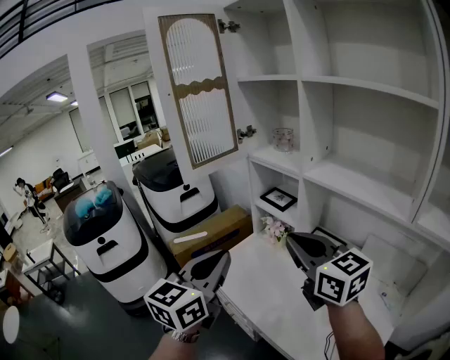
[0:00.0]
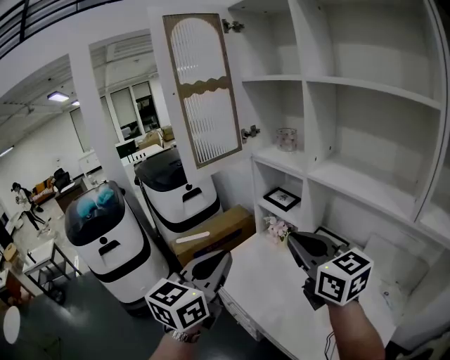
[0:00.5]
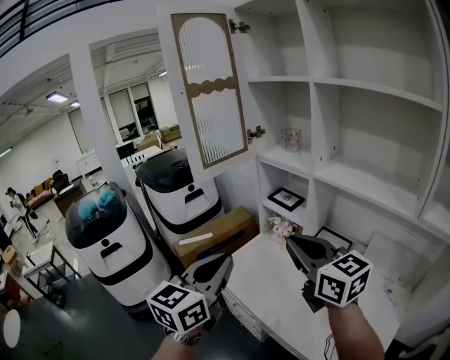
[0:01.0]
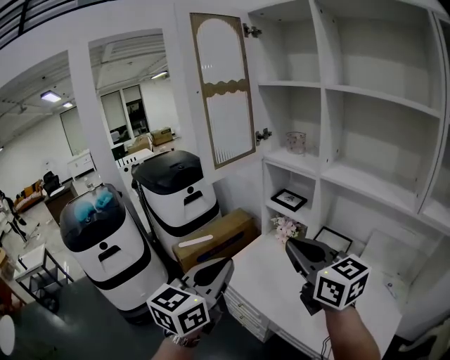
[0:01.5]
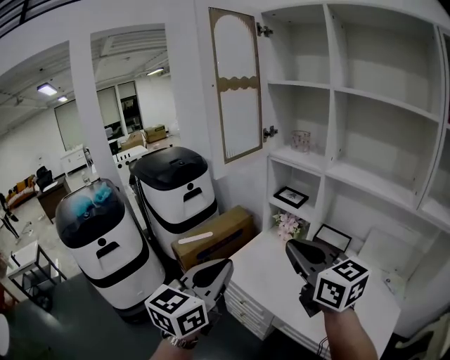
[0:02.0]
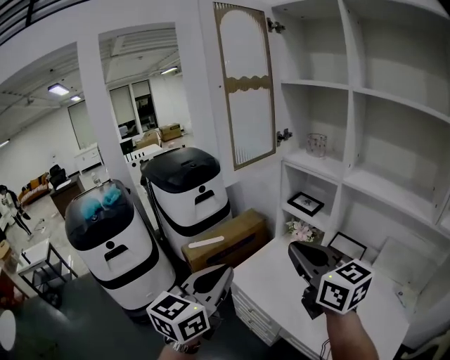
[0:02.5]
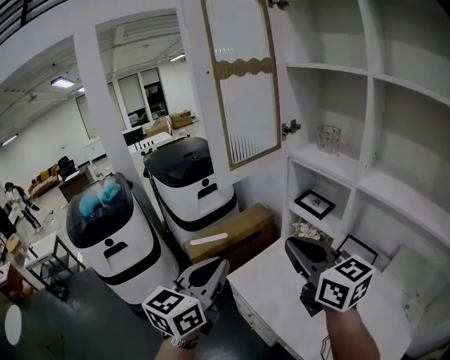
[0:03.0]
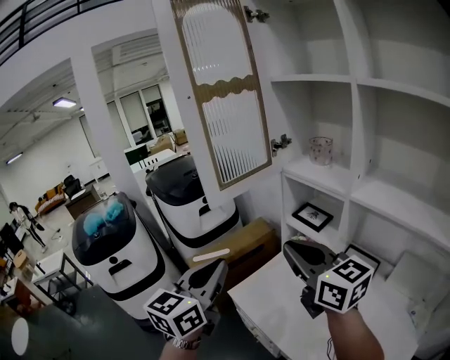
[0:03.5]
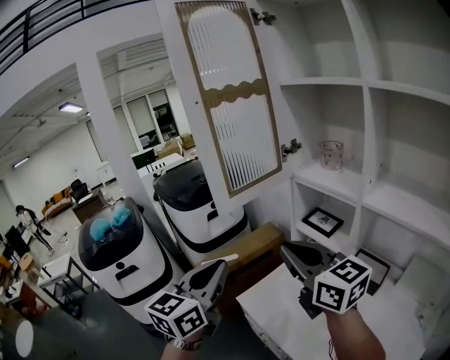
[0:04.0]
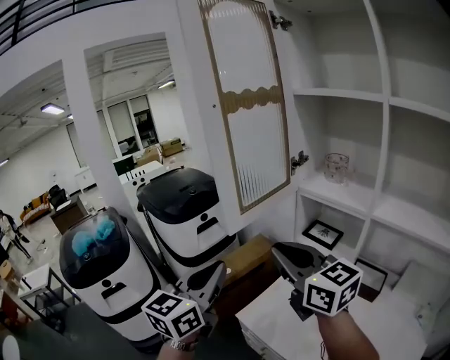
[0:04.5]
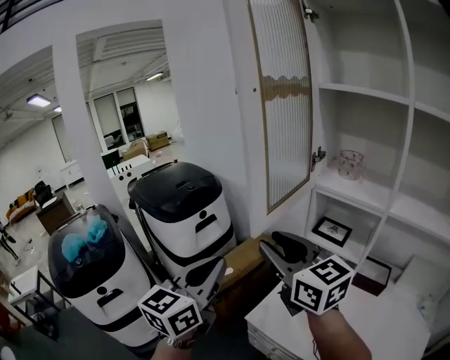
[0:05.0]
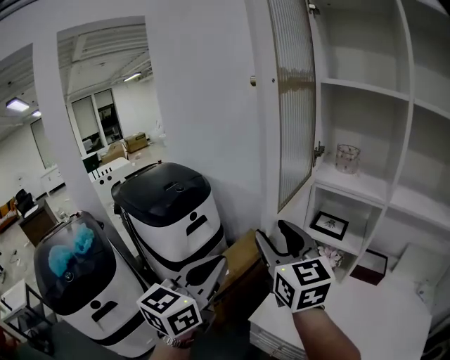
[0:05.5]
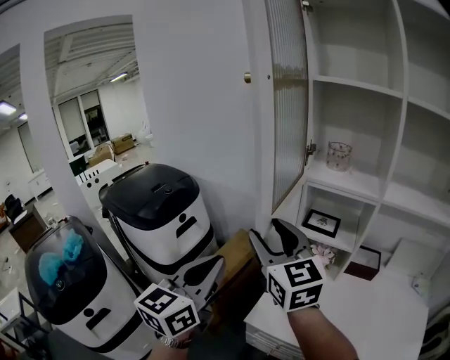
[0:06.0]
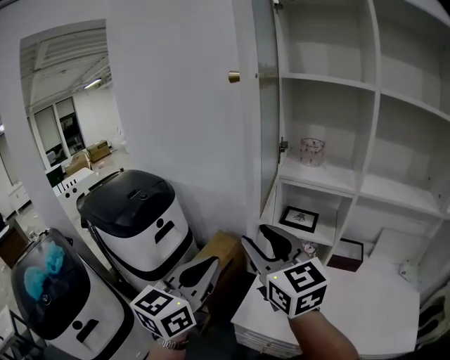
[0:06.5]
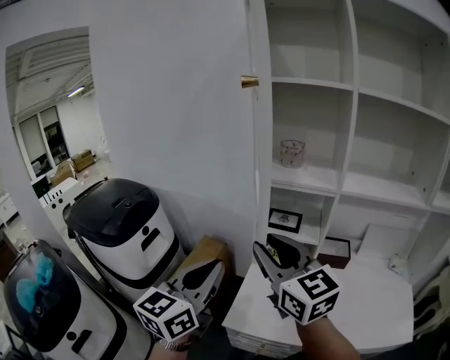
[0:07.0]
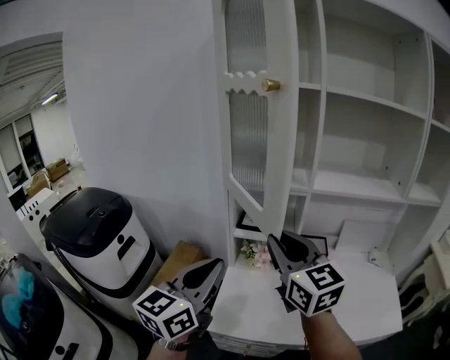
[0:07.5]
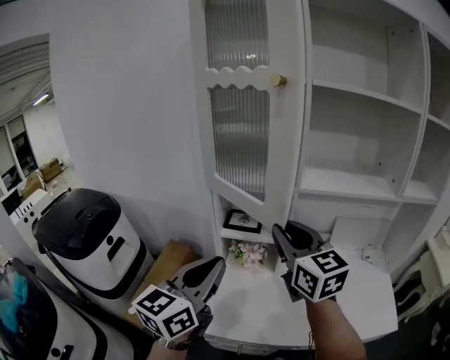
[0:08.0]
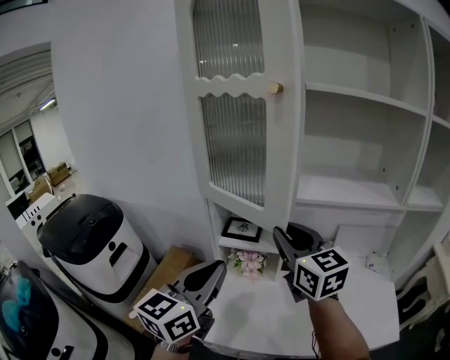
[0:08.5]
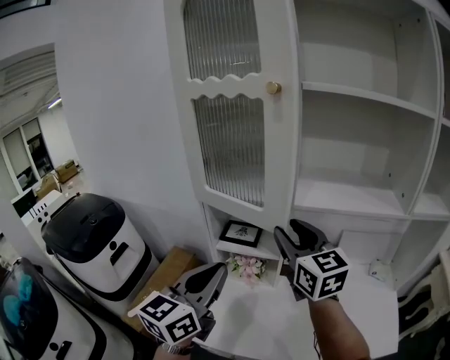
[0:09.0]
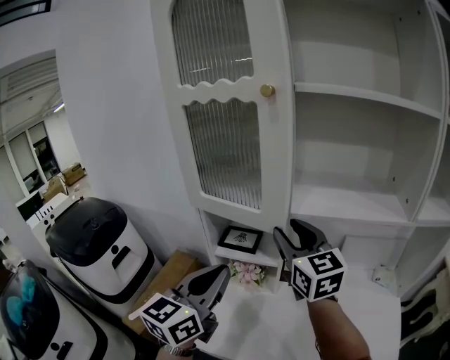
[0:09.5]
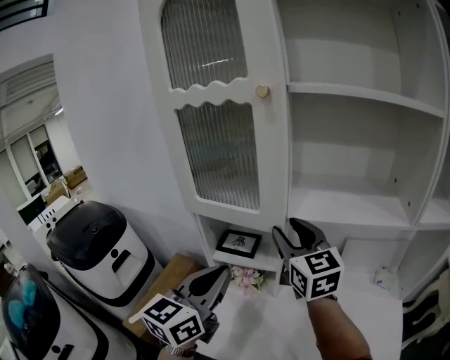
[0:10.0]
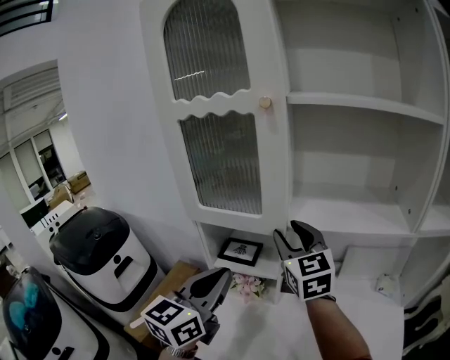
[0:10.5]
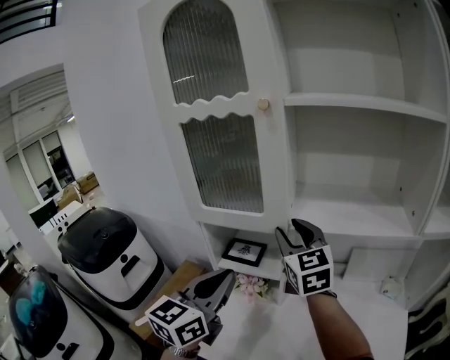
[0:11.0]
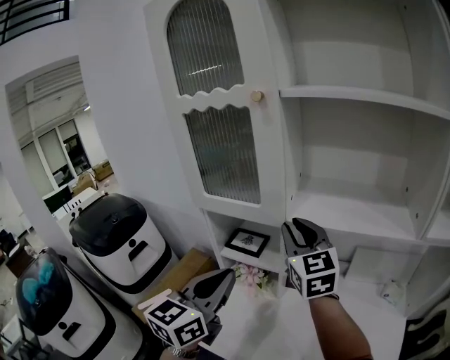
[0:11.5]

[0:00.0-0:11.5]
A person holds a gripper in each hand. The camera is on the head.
0:00.0 to 0:02.0: Both grippers travel together to the left, about 15 cm.
0:02.0 to 0:04.0: Both grippers travel together forward, roughly 20 cm.
0:04.0 to 0:06.0: The left gripper ends up about 20 cm from where it was, and swivels about 20 degrees, while the right gripper changes place by approximately 20 cm, turns by roughly 40 degrees, and opens up.
0:06.0 to 0:07.5: The grippers both shift to the right by roughly 15 cm. The left gripper turns by roughly 20 degrees. The right gripper closes up.
0:07.5 to 0:09.5: The left gripper travels to the right and forward by roughly 15 cm, while the right gripper is displaced forward and to the right by approximately 20 cm, and opens its fingers.
0:09.5 to 0:11.5: The grippers make only small movements.

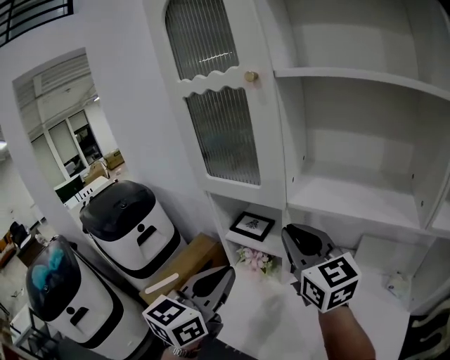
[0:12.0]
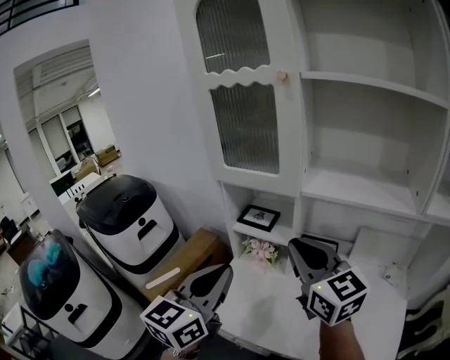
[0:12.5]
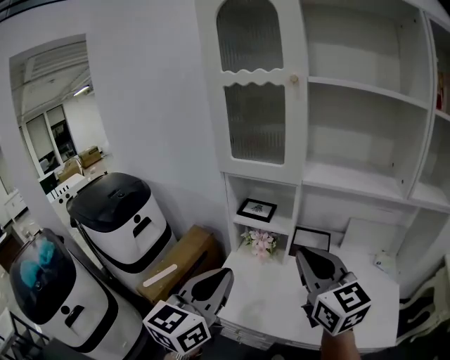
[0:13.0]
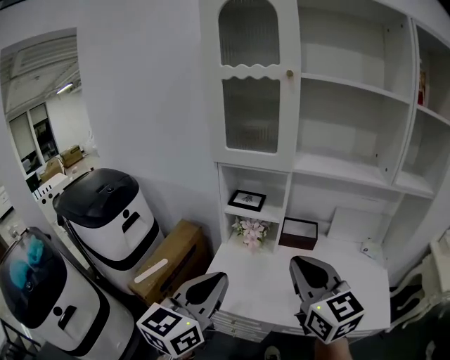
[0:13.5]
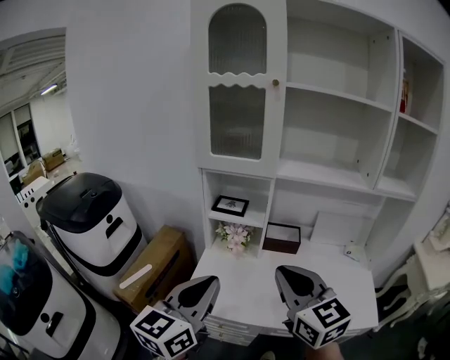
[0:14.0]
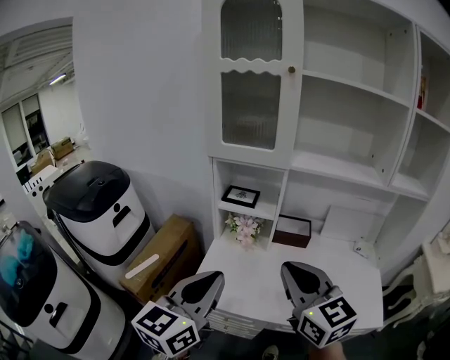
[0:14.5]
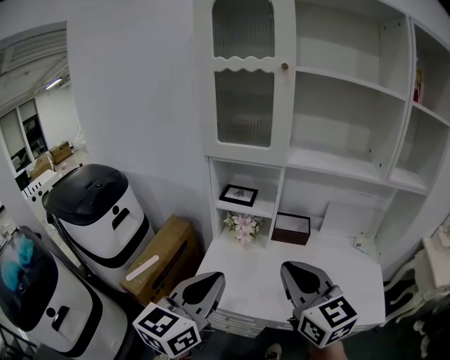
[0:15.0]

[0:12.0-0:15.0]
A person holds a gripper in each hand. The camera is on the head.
0:12.0 to 0:13.5: The left gripper travels backward and to the left by about 20 cm. The right gripper is displaced backward by about 25 cm.
0:13.5 to 0:15.0: The grippers make only small movements.

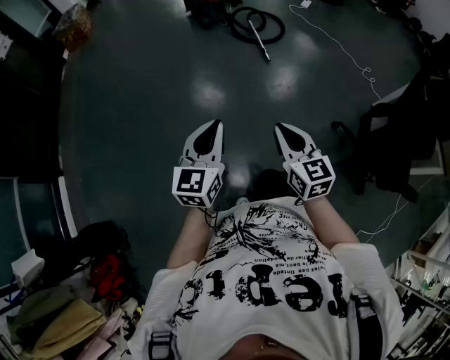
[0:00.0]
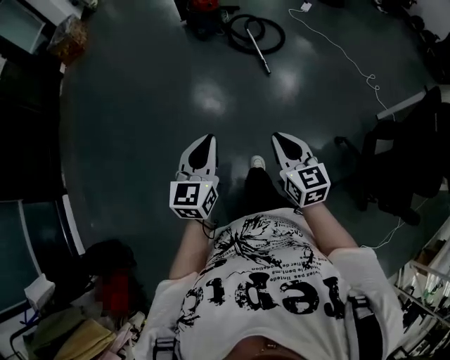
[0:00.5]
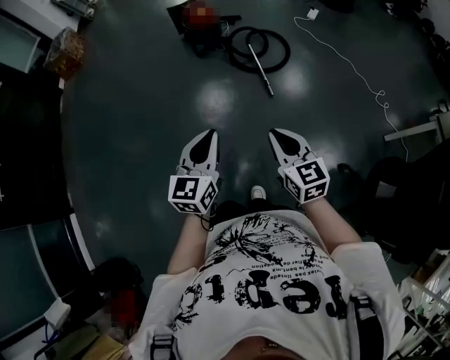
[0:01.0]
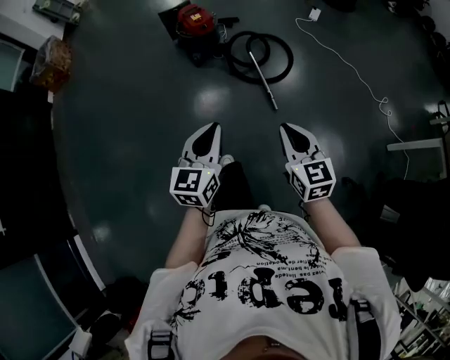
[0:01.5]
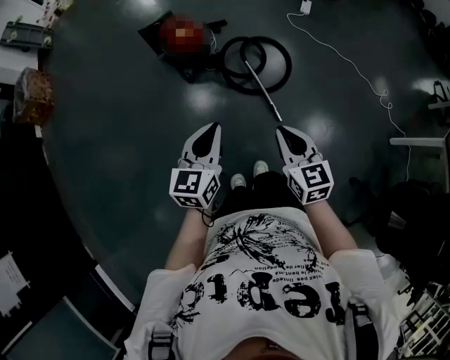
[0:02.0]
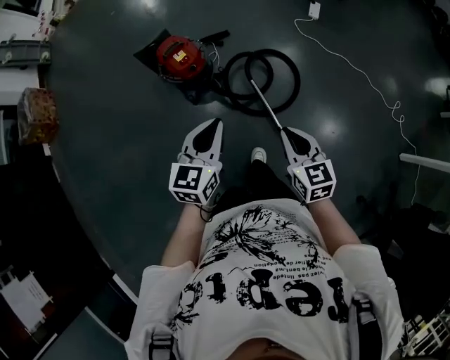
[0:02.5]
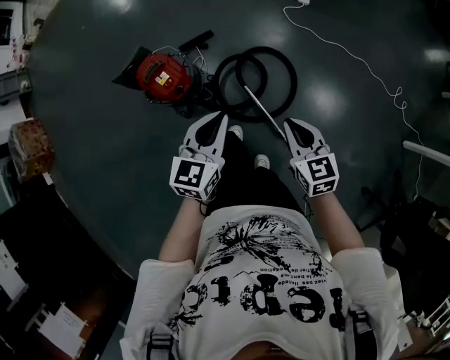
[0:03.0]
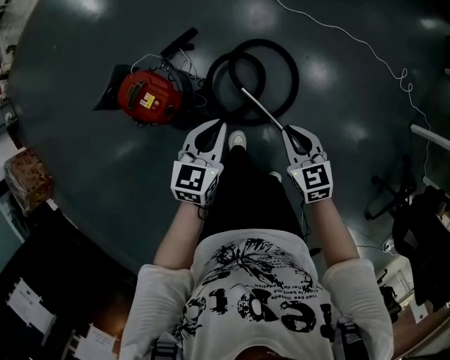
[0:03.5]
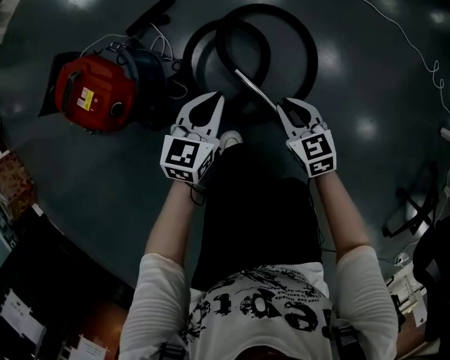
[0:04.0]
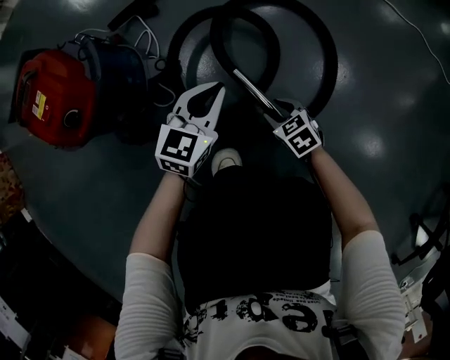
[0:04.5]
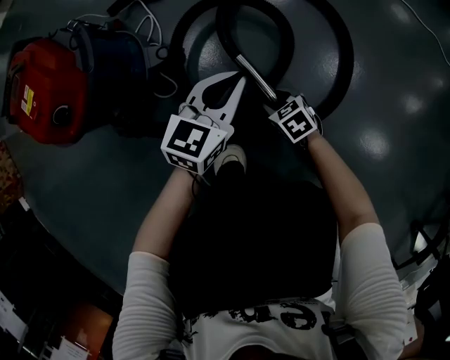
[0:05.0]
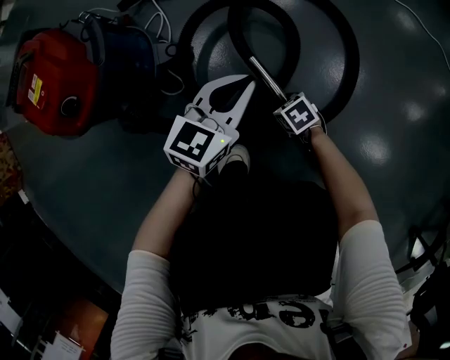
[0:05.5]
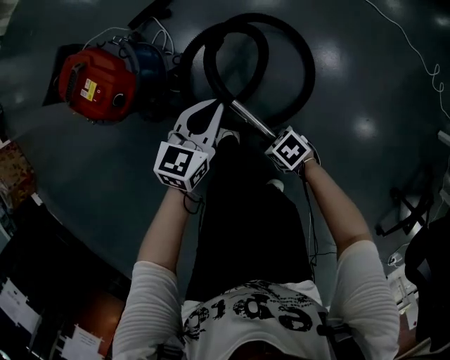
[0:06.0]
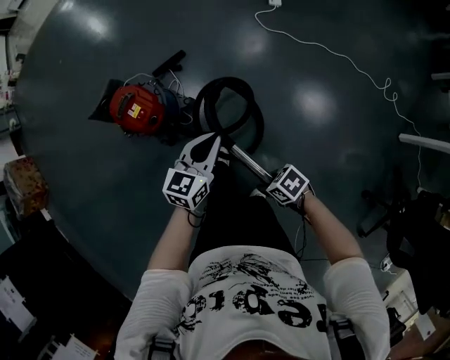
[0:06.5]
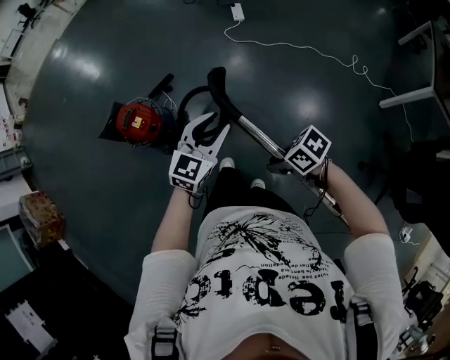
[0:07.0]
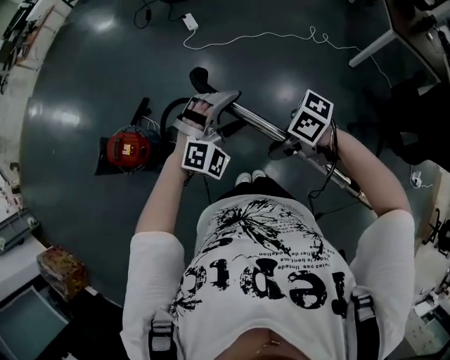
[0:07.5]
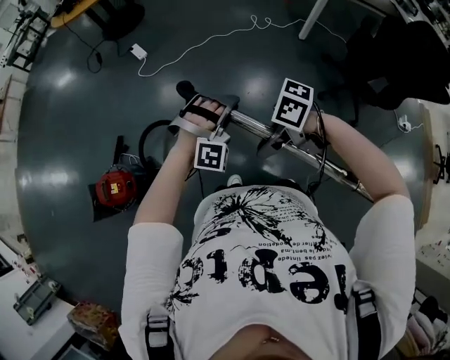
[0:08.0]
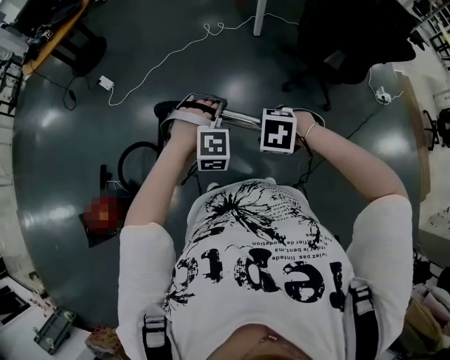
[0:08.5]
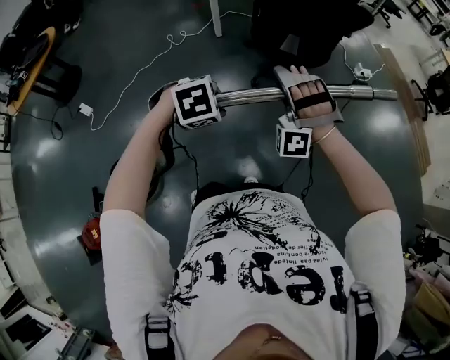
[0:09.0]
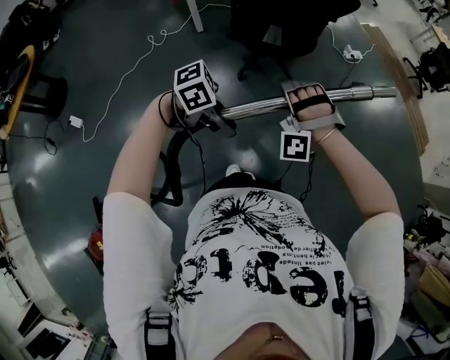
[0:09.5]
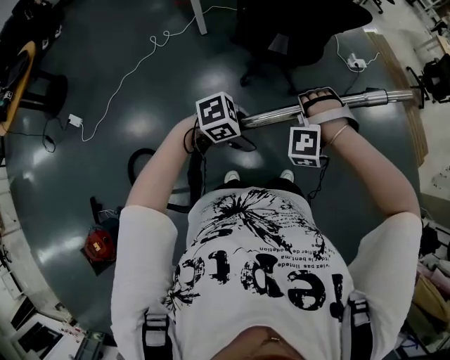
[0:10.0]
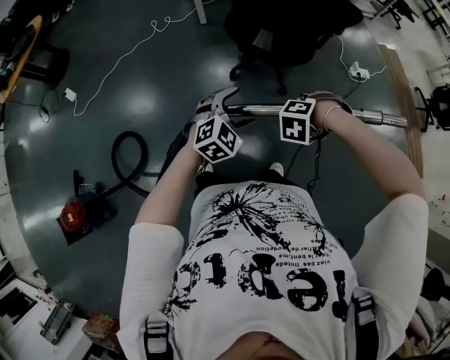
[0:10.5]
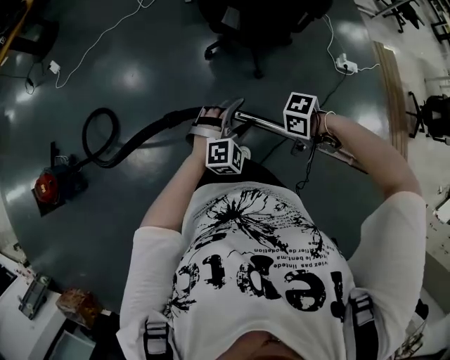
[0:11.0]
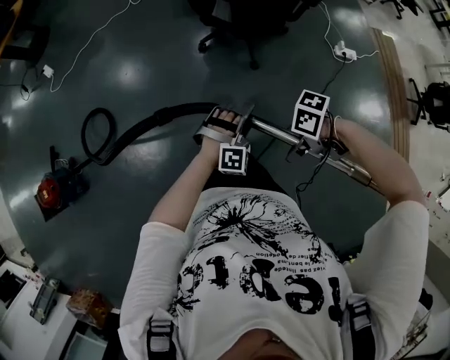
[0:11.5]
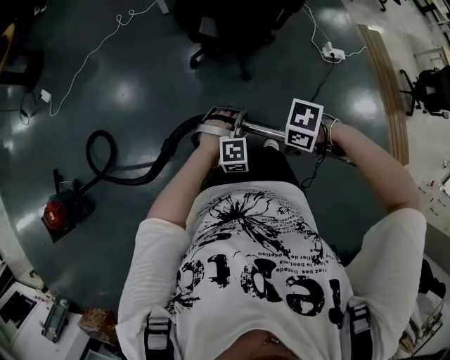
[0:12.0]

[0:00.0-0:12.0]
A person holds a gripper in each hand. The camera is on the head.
0:00.0 to 0:02.0: The left gripper moves some 90 cm.
0:02.0 to 0:04.0: The left gripper ends up some 80 cm from where it was, and swivels roughly 30 degrees.
0:04.0 to 0:06.0: The left gripper reaches about 20 cm downward, then returns.
0:06.0 to 0:08.0: The left gripper goes some 50 cm upward, rolls clockwise, seen from behind, by roughly 120 degrees, and opens, then closes again.
0:08.0 to 0:10.0: The left gripper ends up some 60 cm from where it was, turns by about 90 degrees, and opens its fingers.
0:10.0 to 0:12.0: The left gripper ends up some 40 cm from where it was, turns by about 70 degrees, and closes its fingers.
